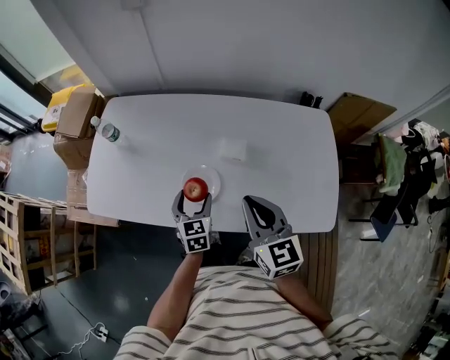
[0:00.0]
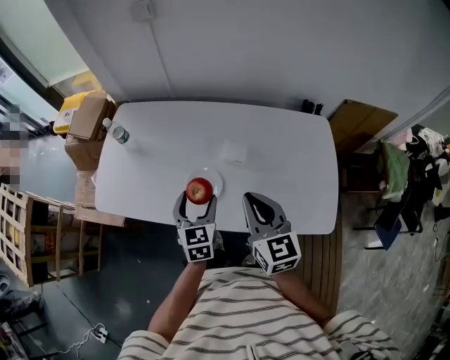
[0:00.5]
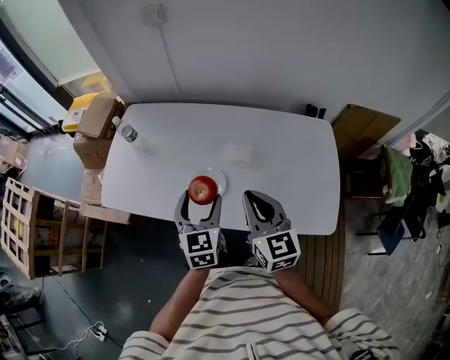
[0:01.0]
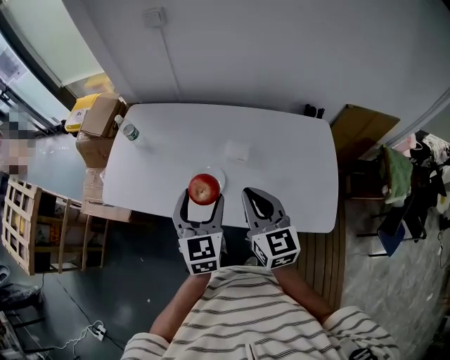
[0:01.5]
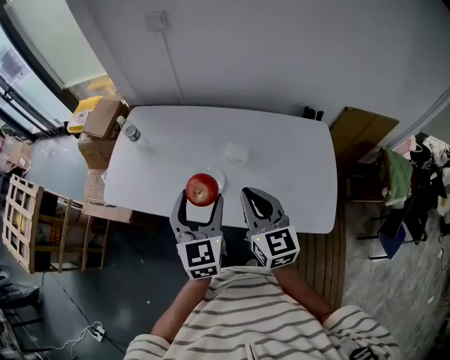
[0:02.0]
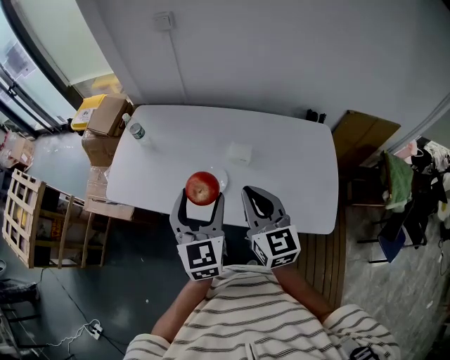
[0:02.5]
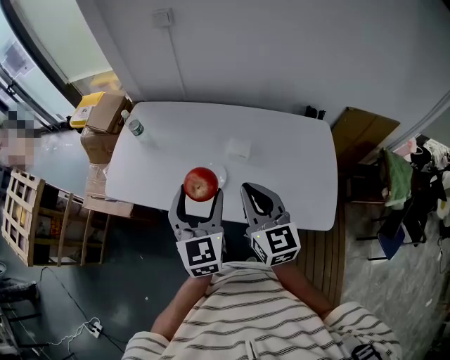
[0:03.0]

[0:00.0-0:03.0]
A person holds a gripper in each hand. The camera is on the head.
0:00.0 to 0:01.5: The left gripper travels upward by some 20 cm; the right gripper shifts by some 5 cm.
0:01.5 to 0:03.0: The left gripper ends up approximately 5 cm from where it was.

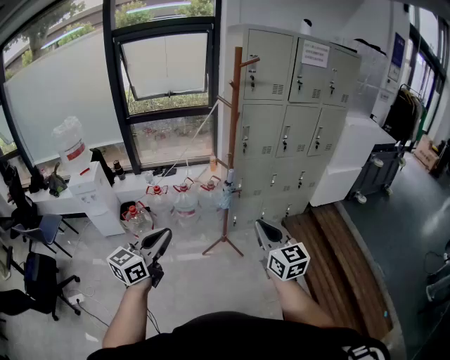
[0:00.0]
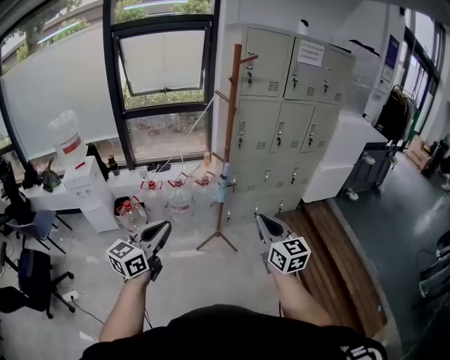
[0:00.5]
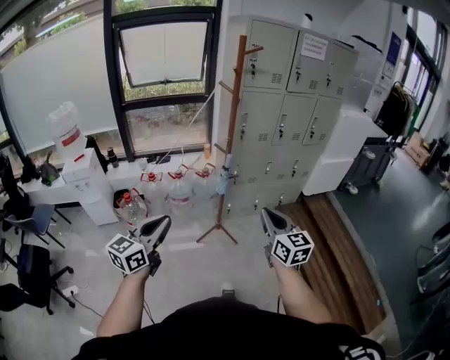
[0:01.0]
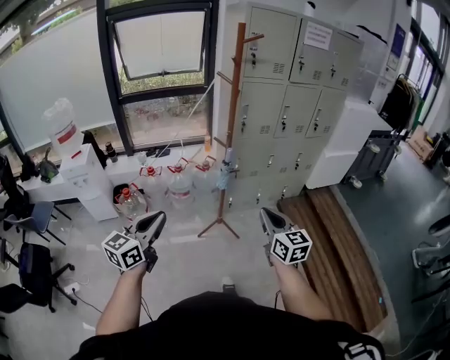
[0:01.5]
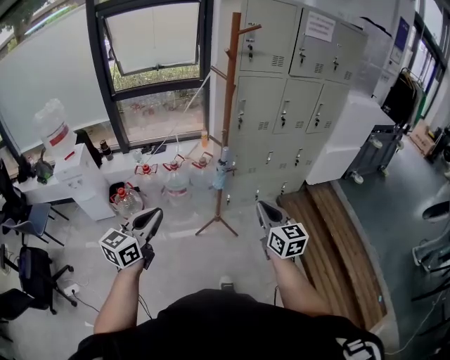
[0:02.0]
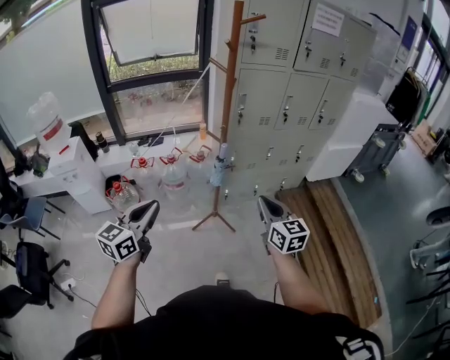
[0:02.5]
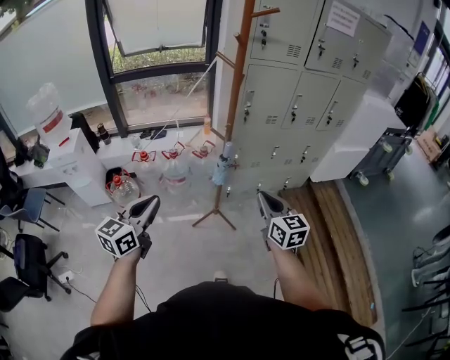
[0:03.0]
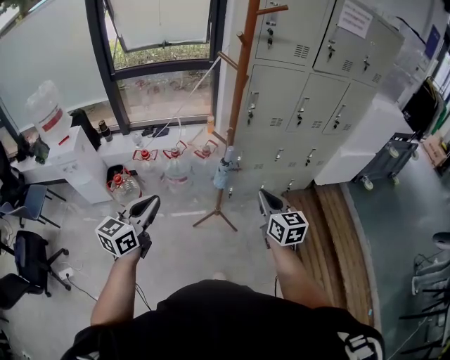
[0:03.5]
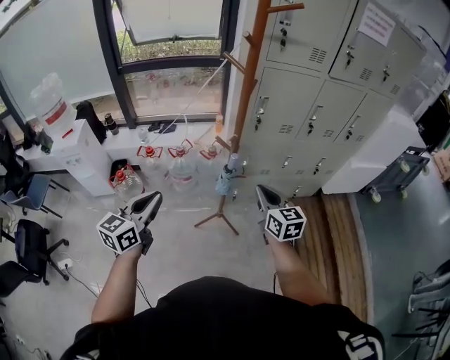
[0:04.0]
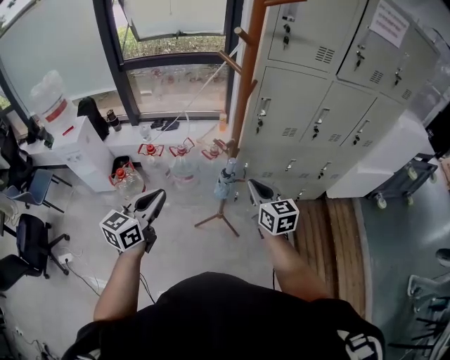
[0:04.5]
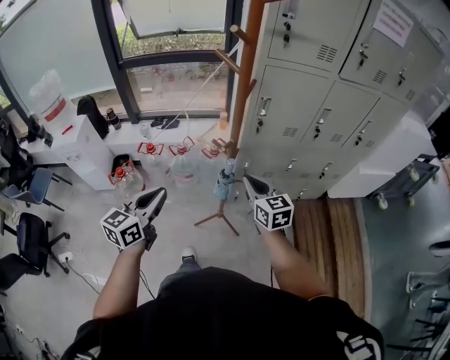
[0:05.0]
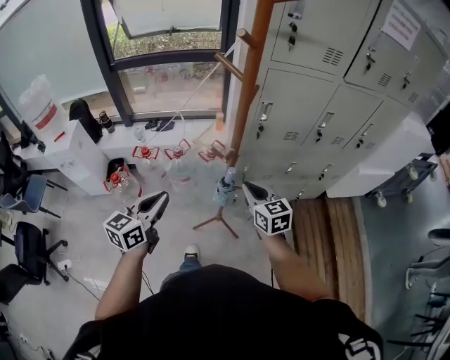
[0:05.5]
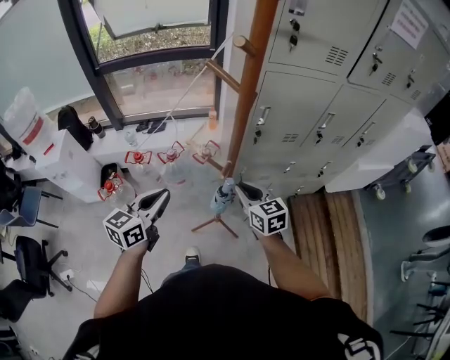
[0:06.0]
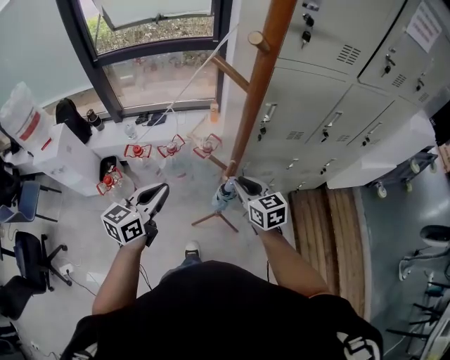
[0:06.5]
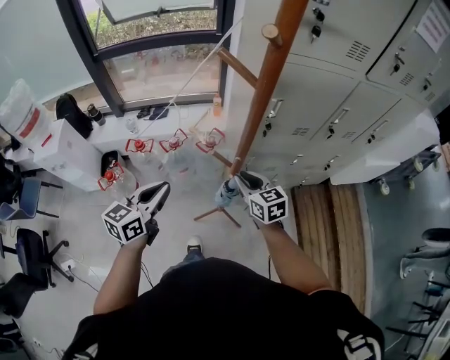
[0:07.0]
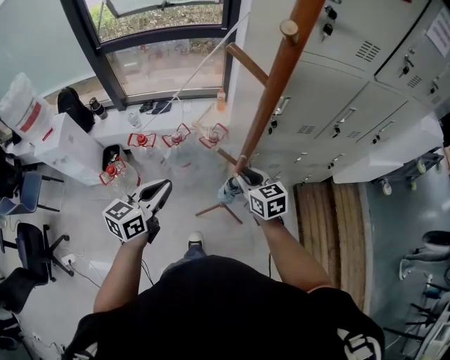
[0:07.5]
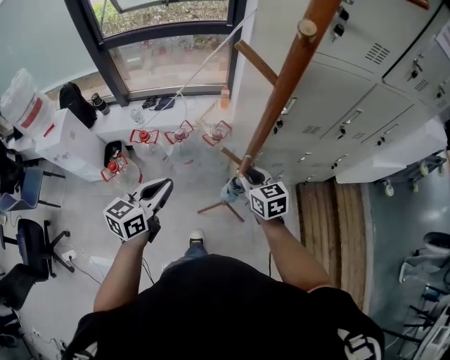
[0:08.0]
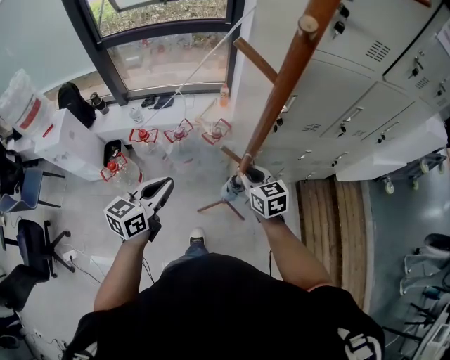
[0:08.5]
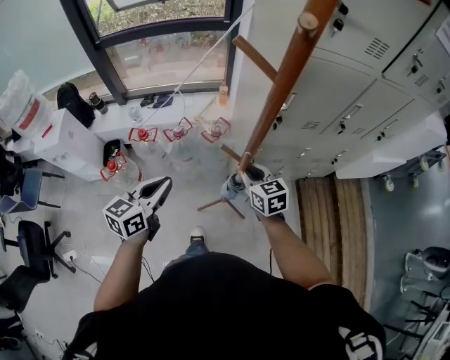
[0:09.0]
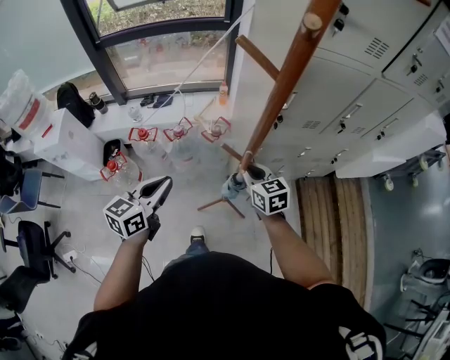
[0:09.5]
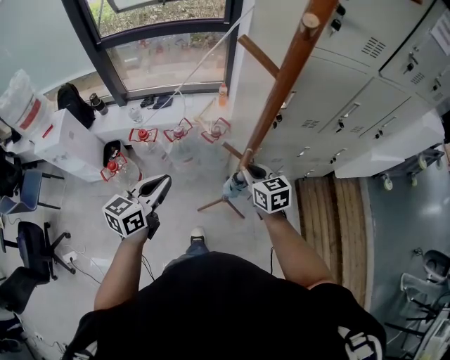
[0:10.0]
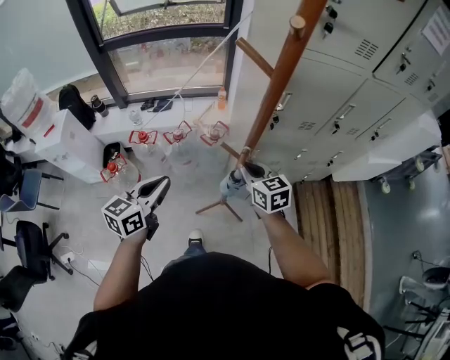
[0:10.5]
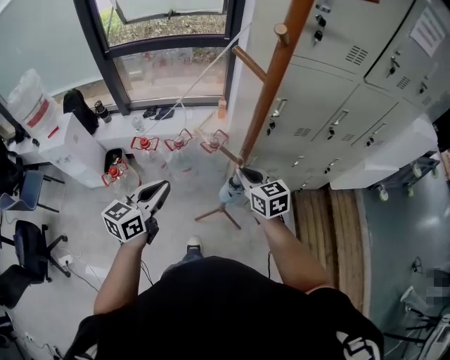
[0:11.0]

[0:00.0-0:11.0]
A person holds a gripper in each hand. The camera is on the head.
0:00.0 to 0:02.0: Both grippers travel together forward and downward, some 10 cm.
0:02.0 to 0:03.5: Both grippers move forward, about 15 cm.
0:03.5 to 0:05.5: The grippers both shift forward by roughly 20 cm.
0:05.5 to 0:07.5: The right gripper shifts about 15 cm forward, downward and to the left, while the left gripper heads forward, covering some 15 cm.
0:07.5 to 0:09.0: The grippers stay close to where they were, moving slightly.
0:09.0 to 0:11.0: The right gripper travels upward and backward by some 10 cm. Meanwhile the left gripper travels backward by approximately 5 cm.

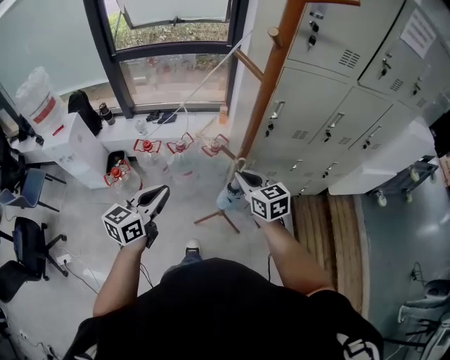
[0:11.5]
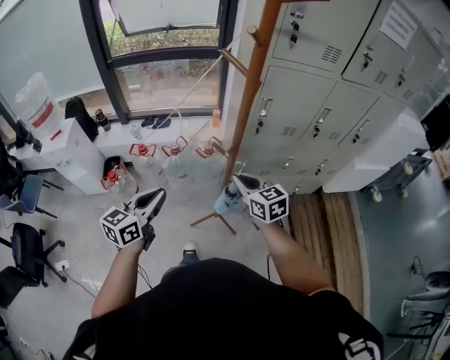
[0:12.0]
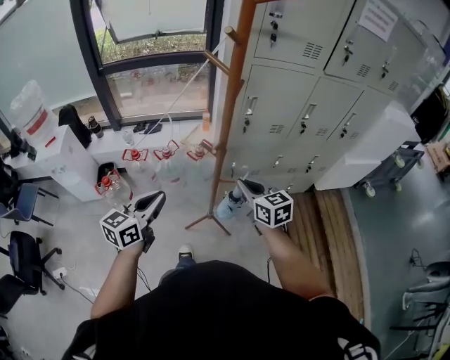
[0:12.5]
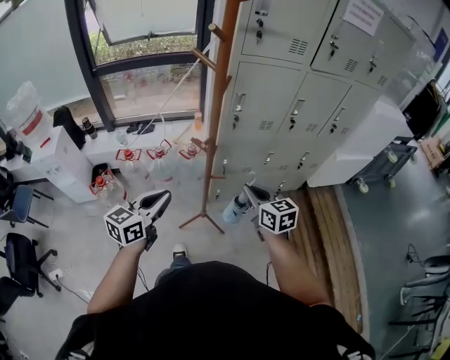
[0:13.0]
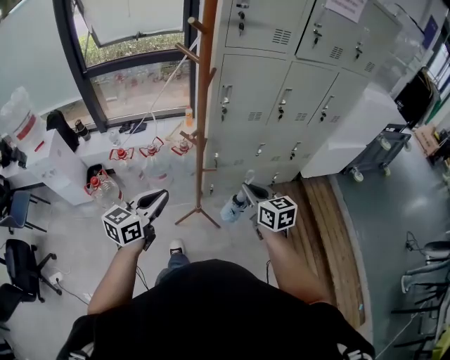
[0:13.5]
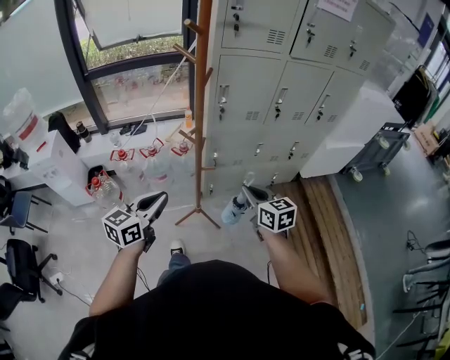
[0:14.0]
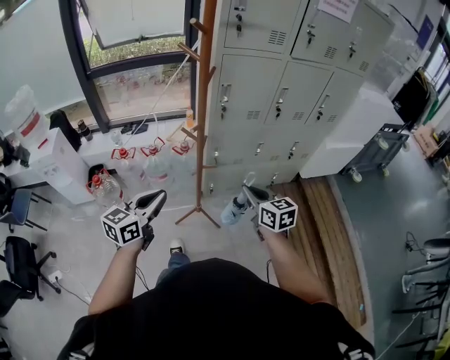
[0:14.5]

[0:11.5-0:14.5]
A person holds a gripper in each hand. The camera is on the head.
0:11.5 to 0:13.0: Both grippers move to the right and backward, about 15 cm.
0:13.0 to 0:14.5: Both grippers travel together backward, approximately 10 cm.

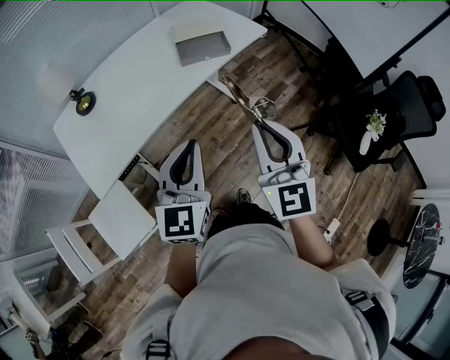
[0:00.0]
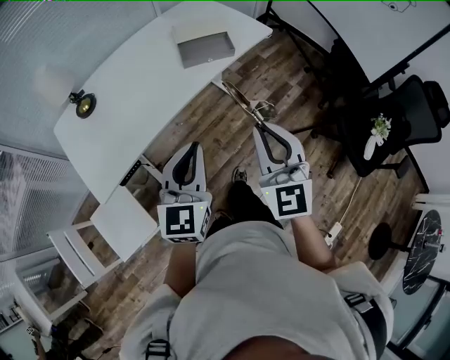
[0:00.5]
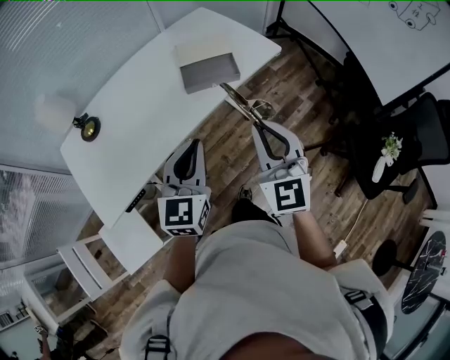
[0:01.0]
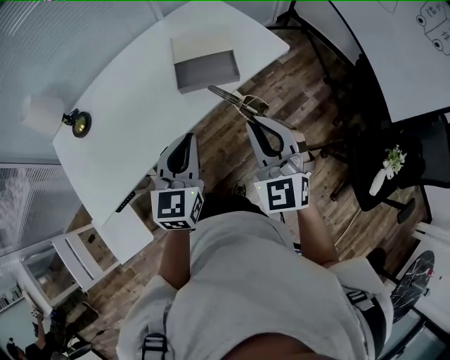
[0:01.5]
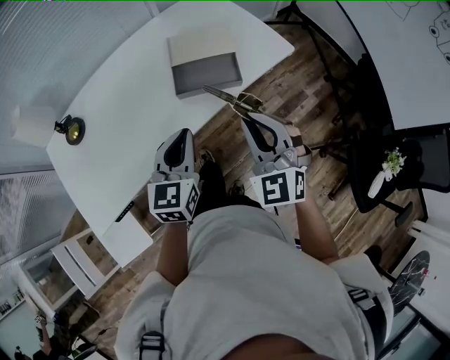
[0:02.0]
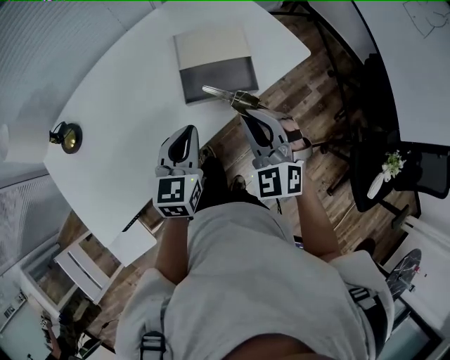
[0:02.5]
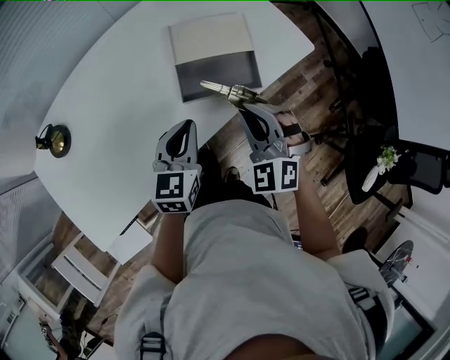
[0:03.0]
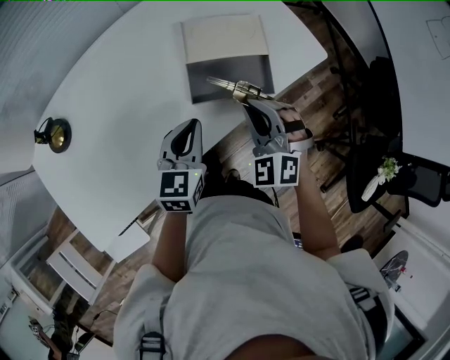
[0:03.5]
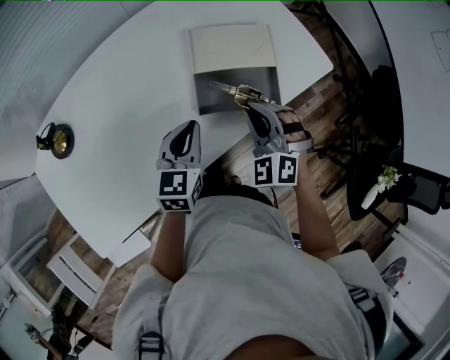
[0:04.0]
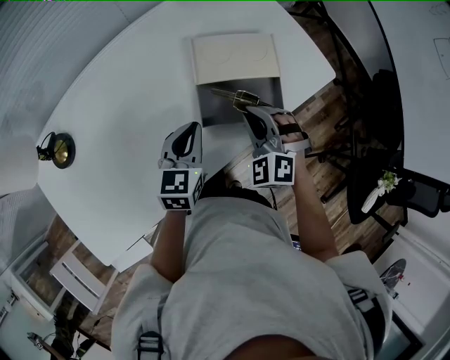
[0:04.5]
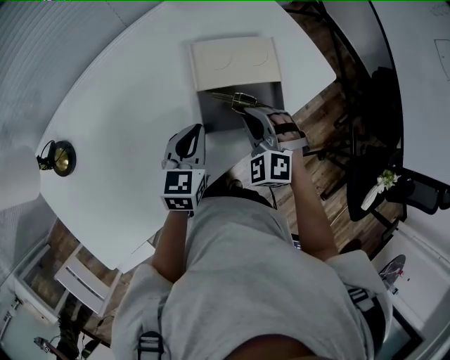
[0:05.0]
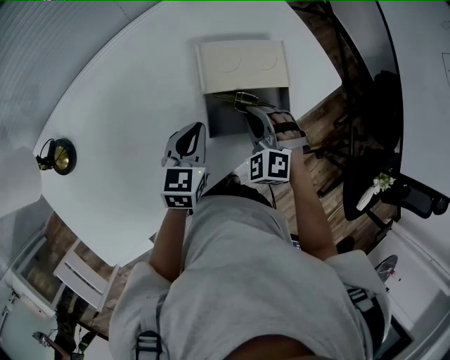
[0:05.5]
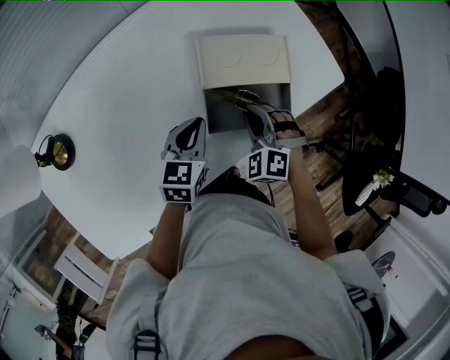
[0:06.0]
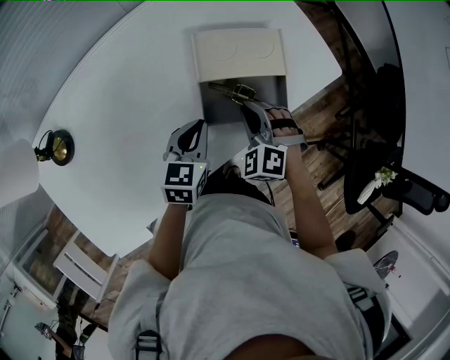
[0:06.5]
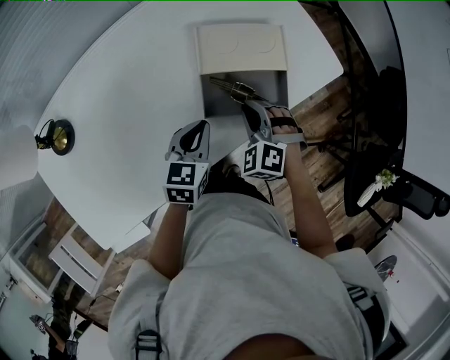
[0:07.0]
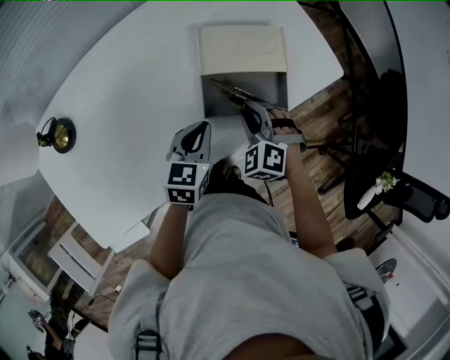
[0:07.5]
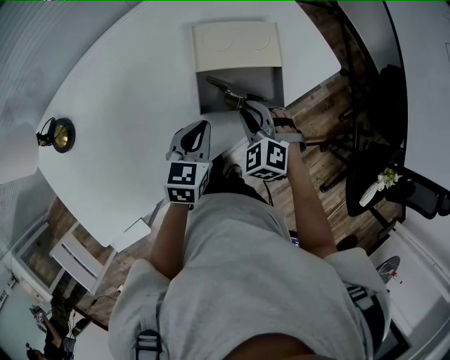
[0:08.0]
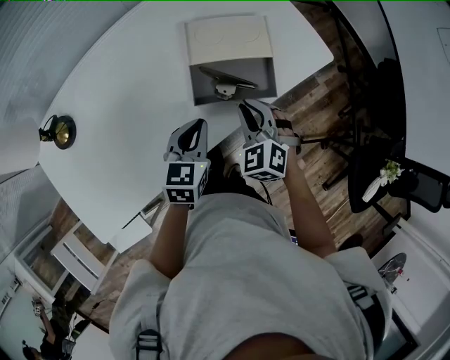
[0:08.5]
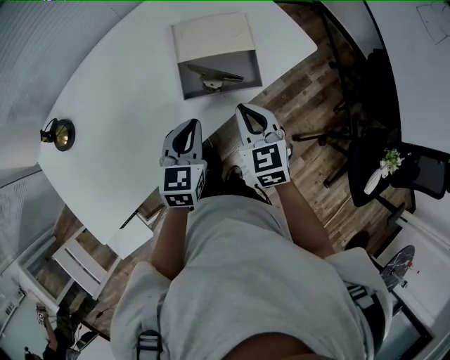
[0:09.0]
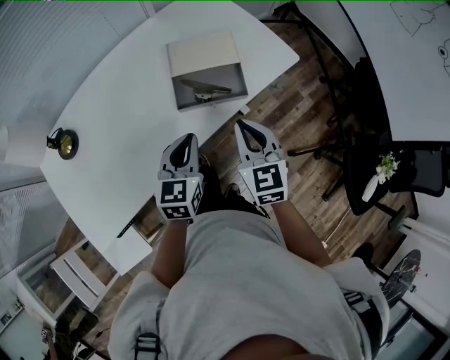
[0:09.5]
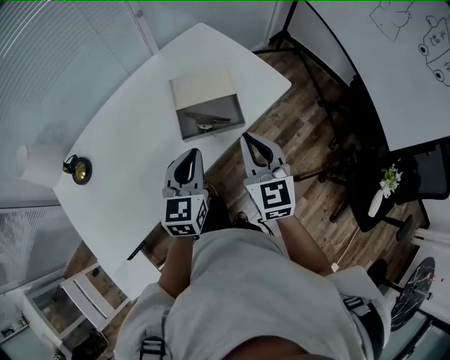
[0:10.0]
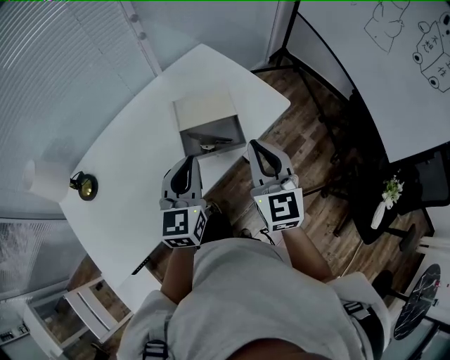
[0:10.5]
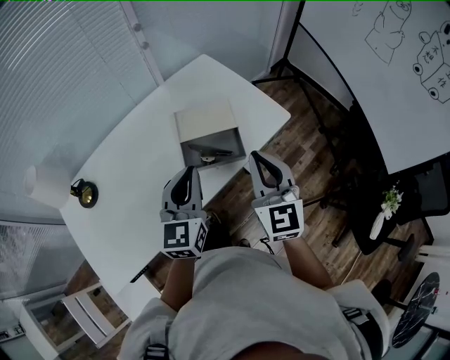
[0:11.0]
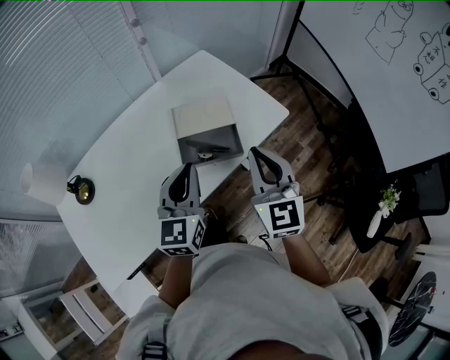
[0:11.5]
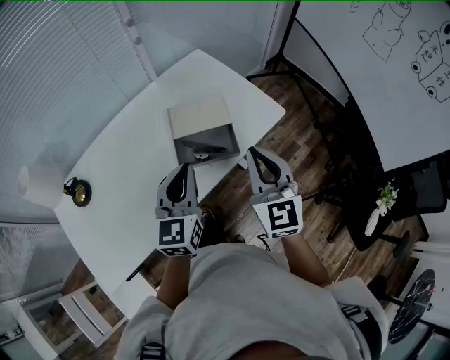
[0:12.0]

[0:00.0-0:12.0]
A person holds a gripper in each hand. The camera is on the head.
0:00.0 to 0:02.0: The two grippers go about 30 cm forward. The right gripper changes its angle by roughly 30 degrees.
0:02.0 to 0:04.0: The two grippers go some 25 cm forward, downward and to the left. The right gripper swivels approximately 20 degrees.
0:04.0 to 0:06.0: The right gripper travels downward and forward by about 10 cm. The left gripper shifts approximately 5 cm forward.
0:06.0 to 0:08.0: The right gripper changes place by some 5 cm. The left gripper is displaced backward by approximately 5 cm.
0:08.0 to 0:10.0: The two grippers go some 20 cm upward and backward. The right gripper angles its fingers upward, by roughly 40 degrees; the left gripper changes its angle by about 20 degrees.
0:10.0 to 0:12.0: Both grippers travel together upward, some 5 cm.
